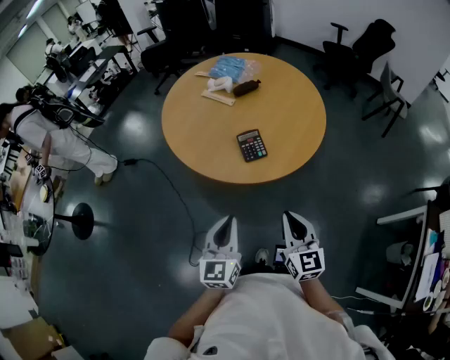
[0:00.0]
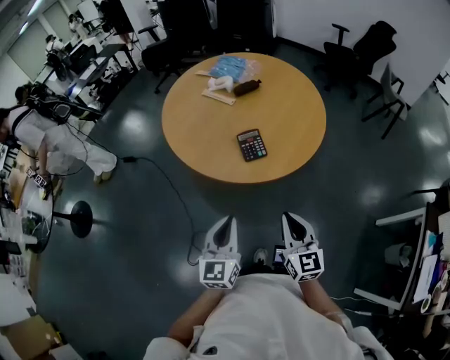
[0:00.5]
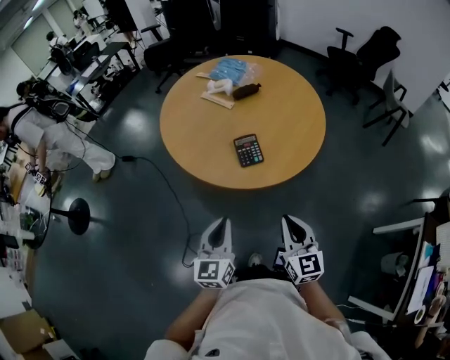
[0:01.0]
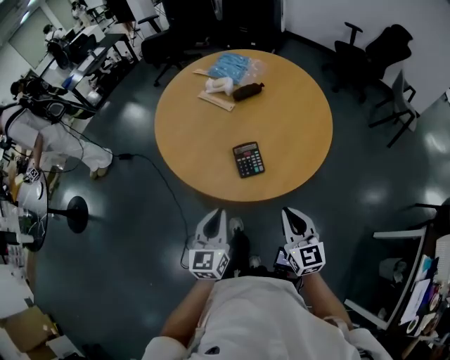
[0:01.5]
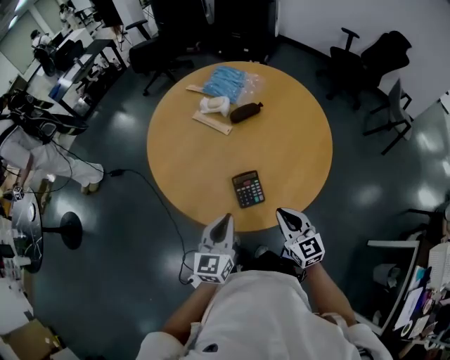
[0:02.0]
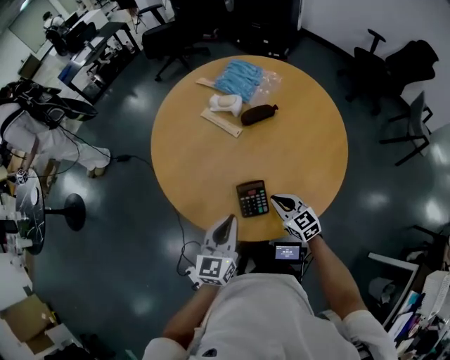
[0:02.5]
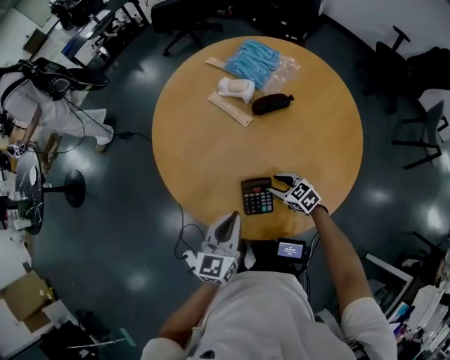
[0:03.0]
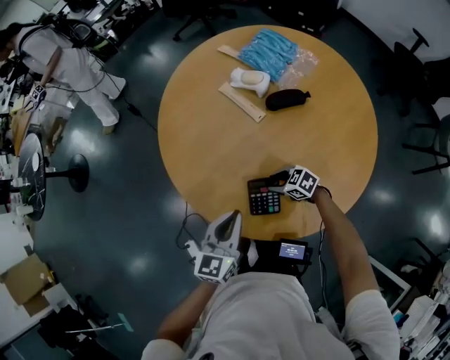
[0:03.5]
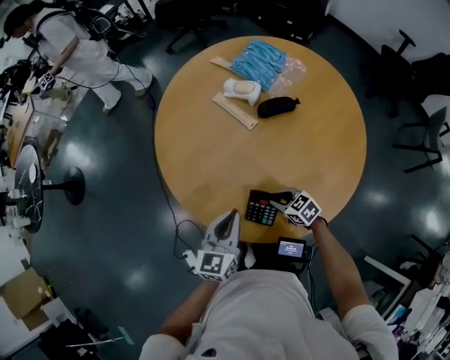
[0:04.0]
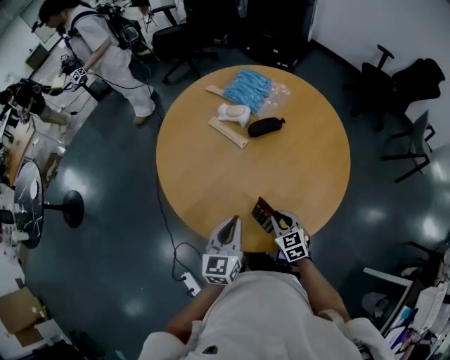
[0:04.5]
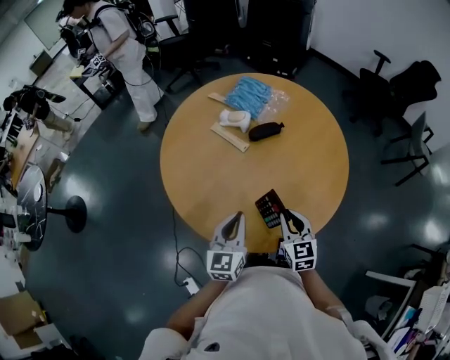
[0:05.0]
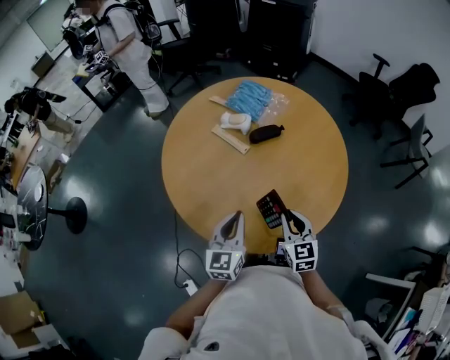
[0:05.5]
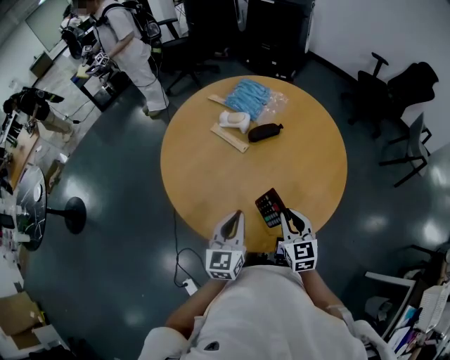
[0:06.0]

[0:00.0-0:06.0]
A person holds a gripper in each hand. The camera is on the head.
0.0 to 2.0 s: The grippers both shift forward by about 25 cm.
2.0 to 4.0 s: The left gripper changes place by approximately 10 cm. Meanwhile the right gripper moves downward, some 20 cm, swivels approximately 50 degrees, and opens, then closes again.
4.0 to 6.0 s: The right gripper heads upward, covering some 20 cm, and turns by about 50 degrees. Meanwhile the left gripper moves upward, about 5 cm.

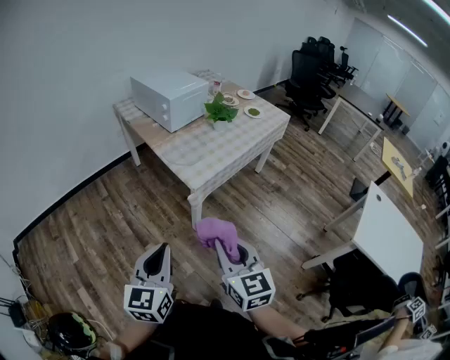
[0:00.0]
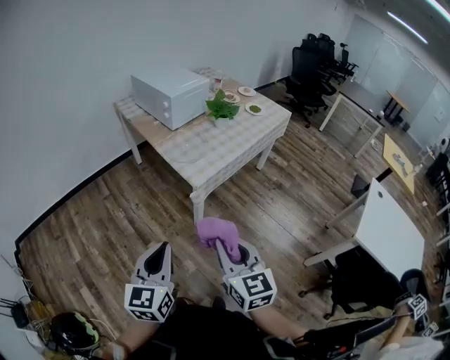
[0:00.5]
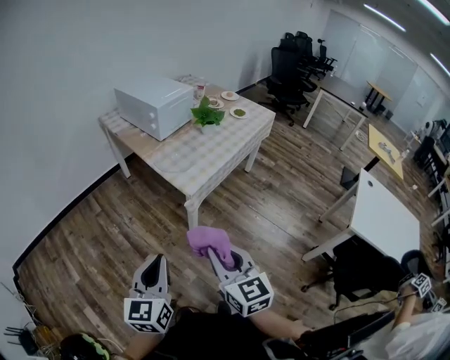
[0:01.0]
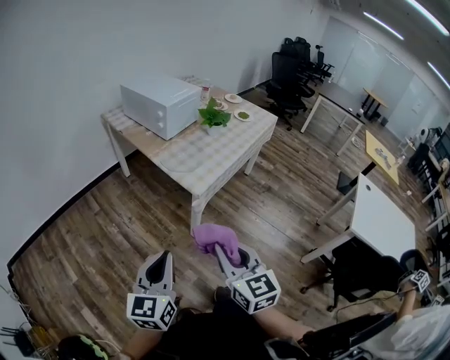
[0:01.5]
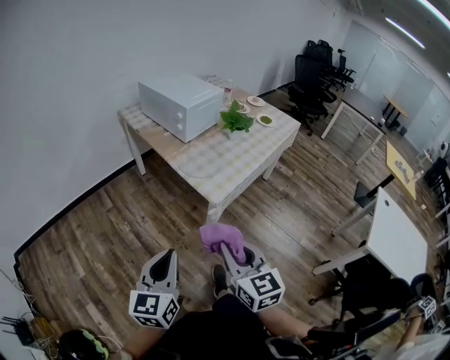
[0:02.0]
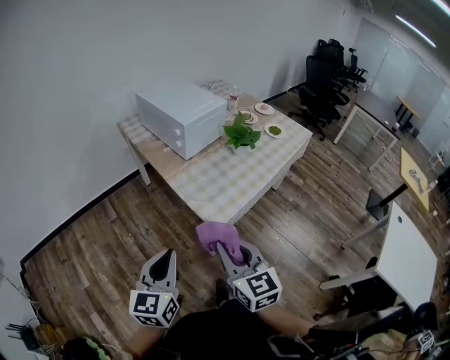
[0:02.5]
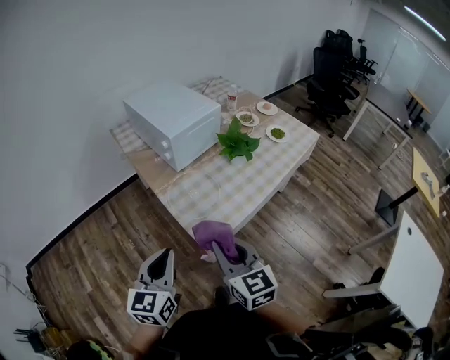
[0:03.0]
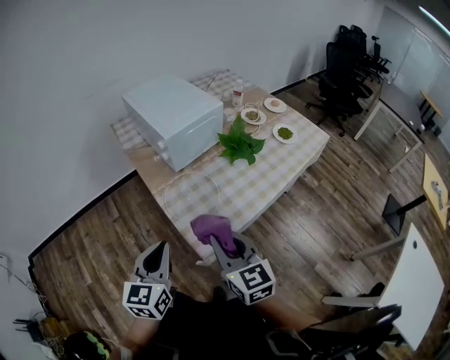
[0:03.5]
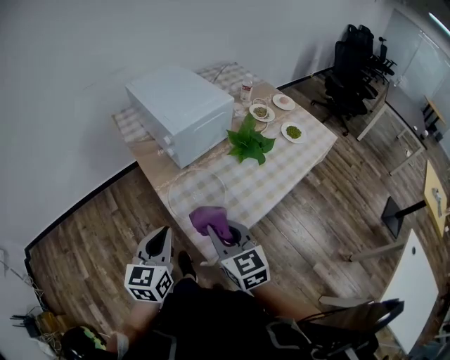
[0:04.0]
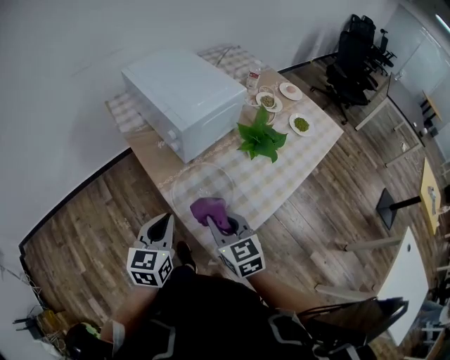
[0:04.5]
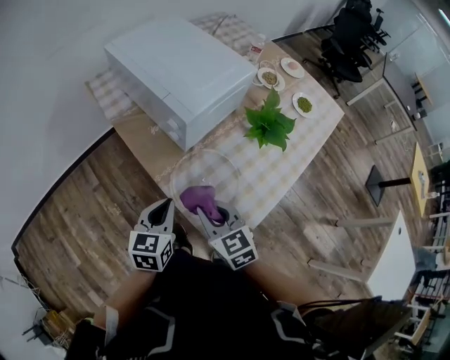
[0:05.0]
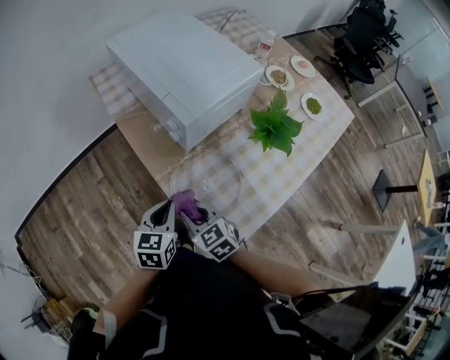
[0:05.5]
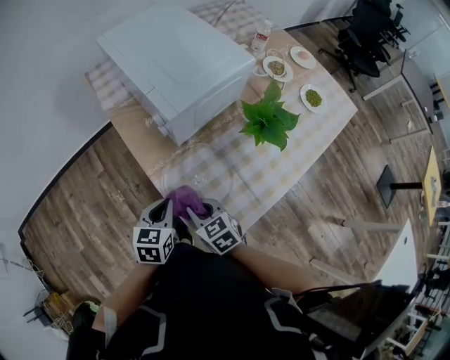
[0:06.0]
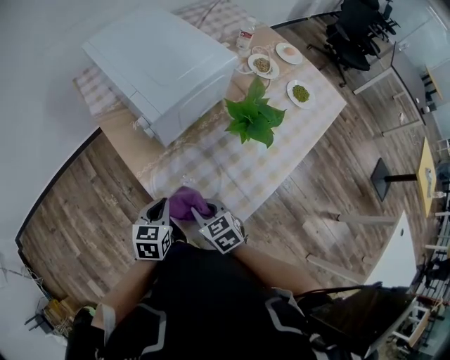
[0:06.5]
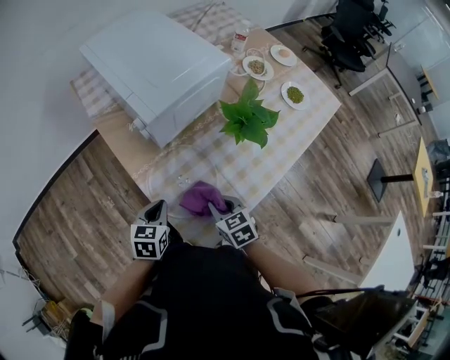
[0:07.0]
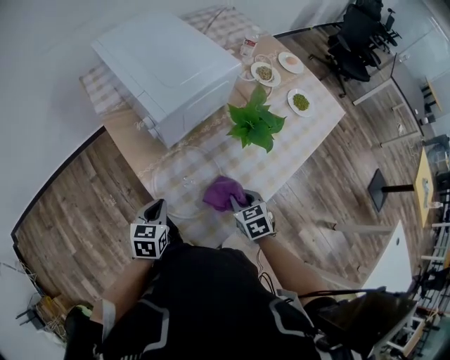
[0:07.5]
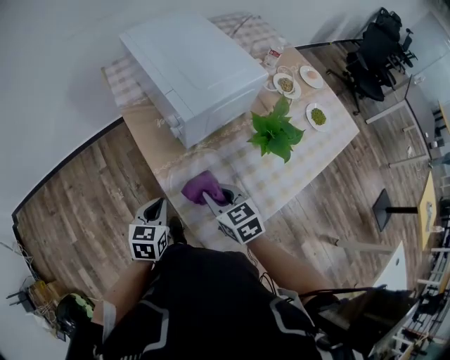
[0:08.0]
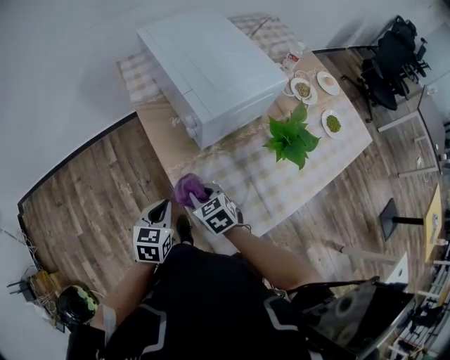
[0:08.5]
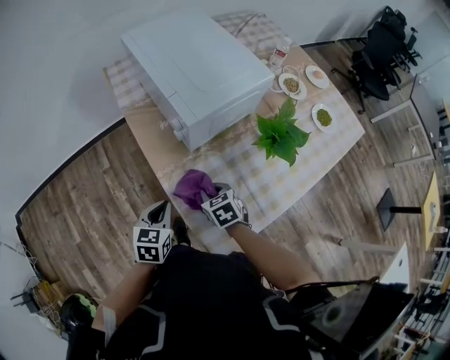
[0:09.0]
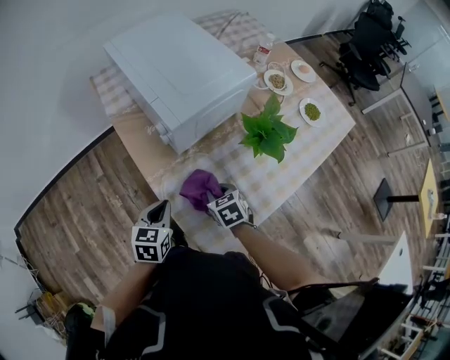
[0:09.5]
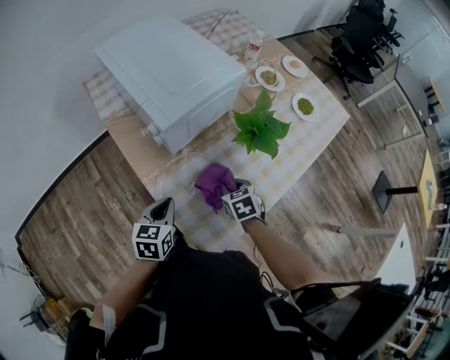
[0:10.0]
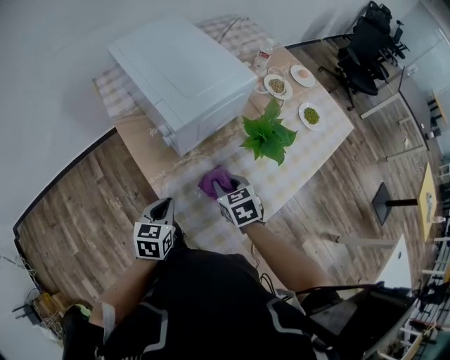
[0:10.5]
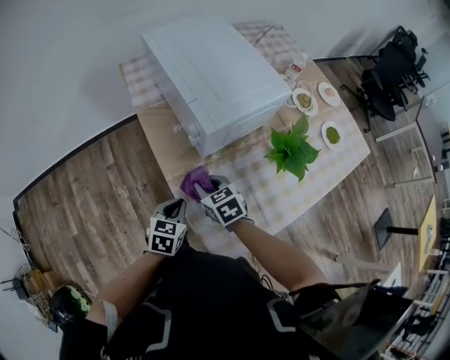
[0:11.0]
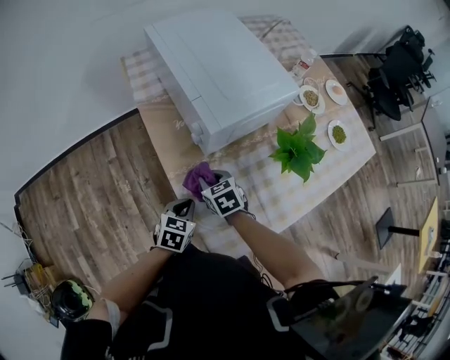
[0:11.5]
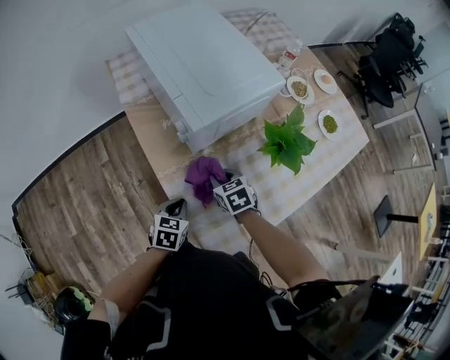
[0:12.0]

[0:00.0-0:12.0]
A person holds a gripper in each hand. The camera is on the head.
0.0 to 2.0 s: Both grippers move to the left and forward, roughly 10 cm.
2.0 to 4.0 s: The two grippers go roughly 35 cm forward.
4.0 to 6.0 s: The grippers both shift downward and forward by about 20 cm. The right gripper turns by about 30 degrees, while the left gripper swivels about 20 degrees.
6.0 to 8.0 s: The right gripper shifts some 5 cm upward, and goes to the right and returns, about 20 cm each way.
8.0 to 10.0 s: The right gripper goes some 15 cm to the right and downward, and turns by some 30 degrees. The left gripper is displaced to the right by some 5 cm.
10.0 to 12.0 s: The right gripper travels to the left and forward by about 10 cm, while the left gripper is displaced downward by some 10 cm.

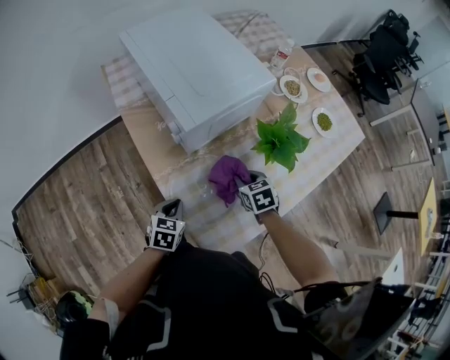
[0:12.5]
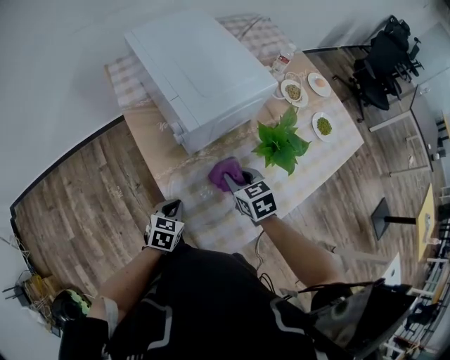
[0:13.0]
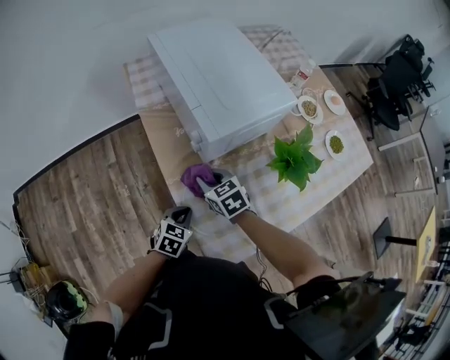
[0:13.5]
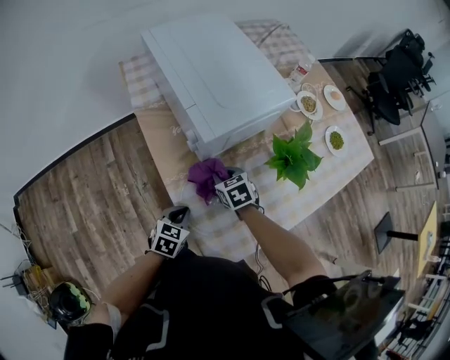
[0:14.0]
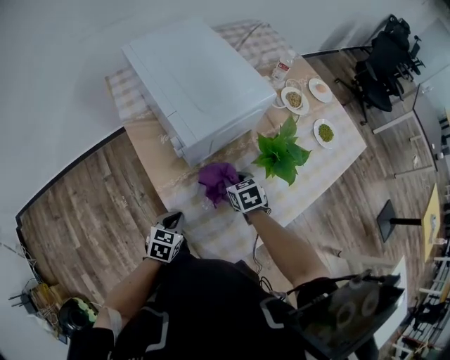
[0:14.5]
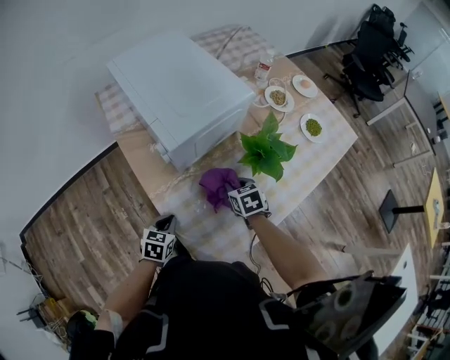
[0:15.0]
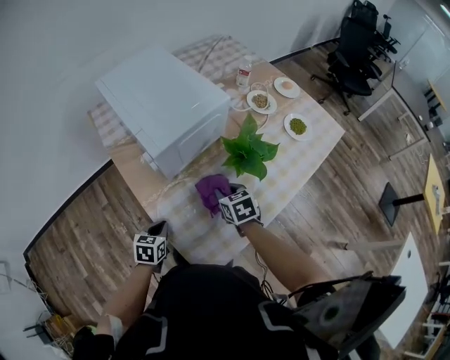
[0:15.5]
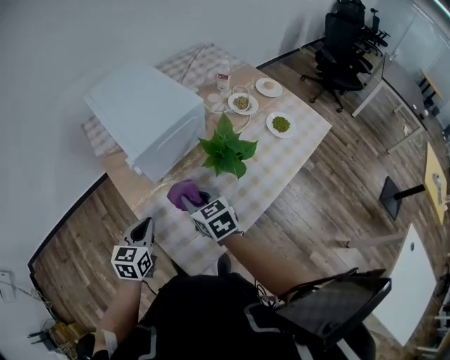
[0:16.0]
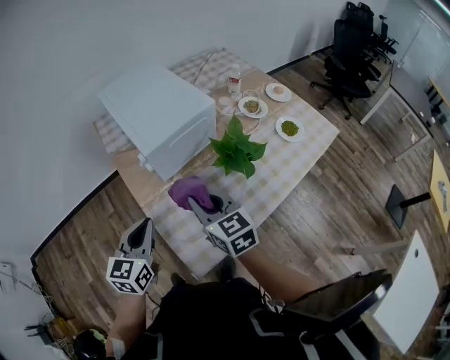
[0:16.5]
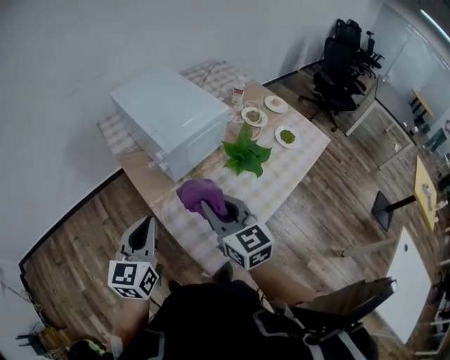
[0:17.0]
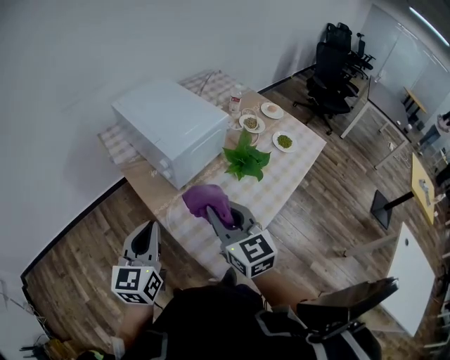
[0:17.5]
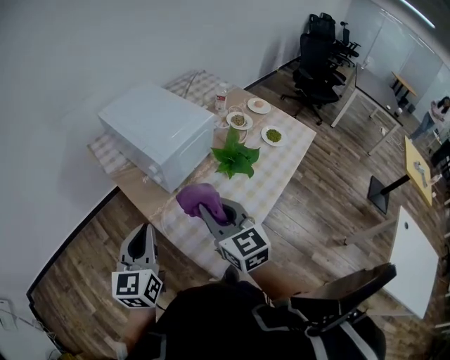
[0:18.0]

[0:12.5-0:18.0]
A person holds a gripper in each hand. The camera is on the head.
12.5 to 14.5 s: The right gripper travels to the left and back again, about 20 cm each way.
14.5 to 16.0 s: The left gripper shifts approximately 15 cm upward, while the right gripper moves upward and backward, approximately 15 cm, and turns by approximately 20 degrees.
16.0 to 18.0 s: The right gripper travels upward and backward by some 20 cm, and swivels some 30 degrees. The left gripper heads upward, covering roughly 15 cm, and swivels about 20 degrees.

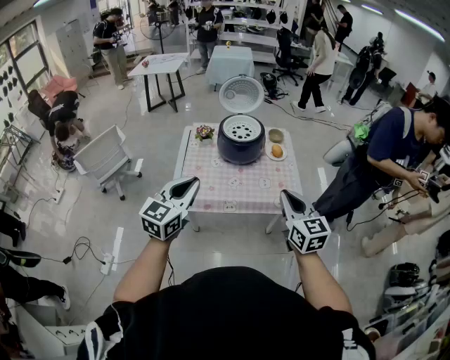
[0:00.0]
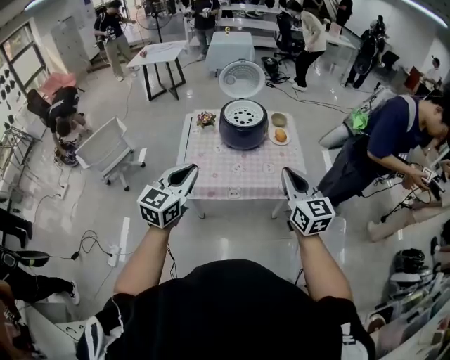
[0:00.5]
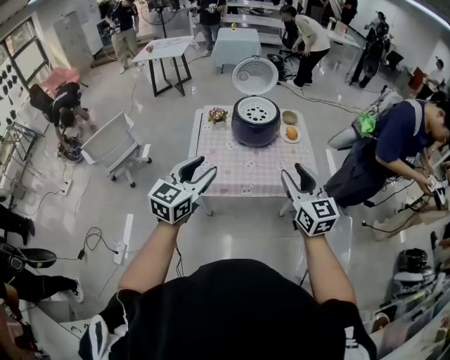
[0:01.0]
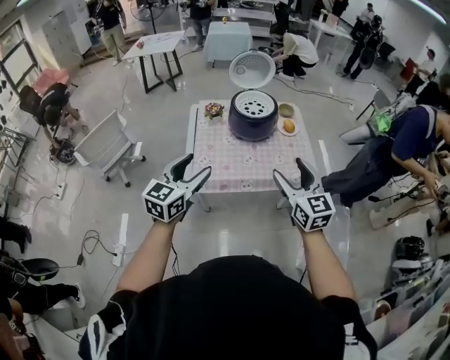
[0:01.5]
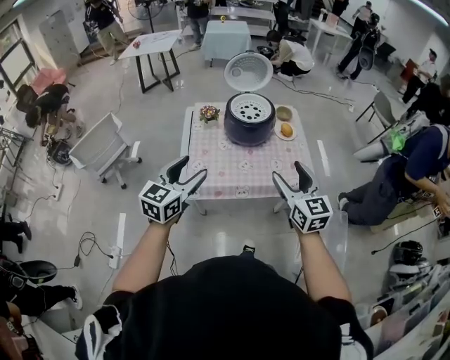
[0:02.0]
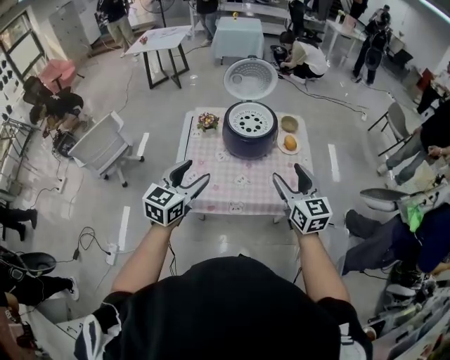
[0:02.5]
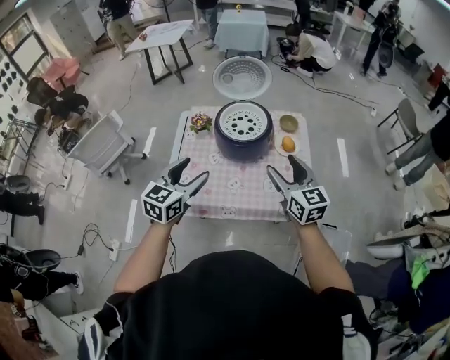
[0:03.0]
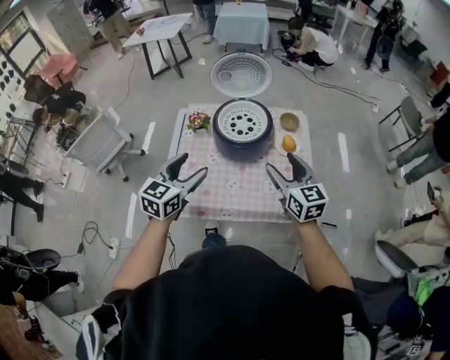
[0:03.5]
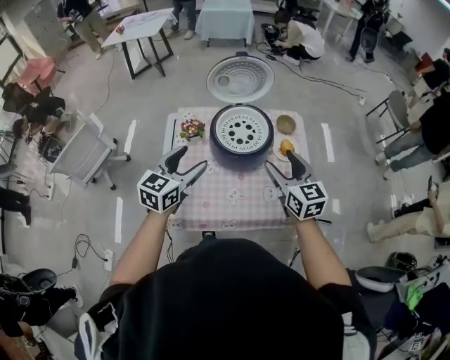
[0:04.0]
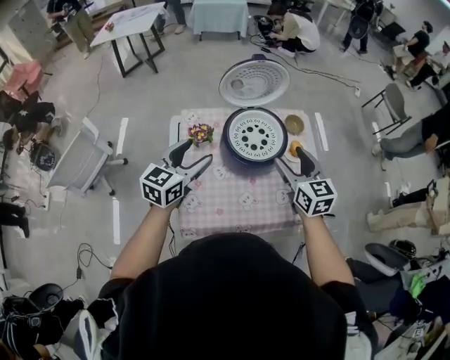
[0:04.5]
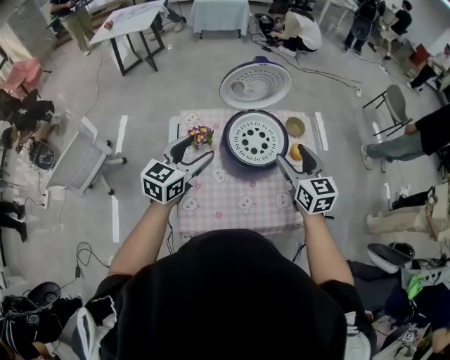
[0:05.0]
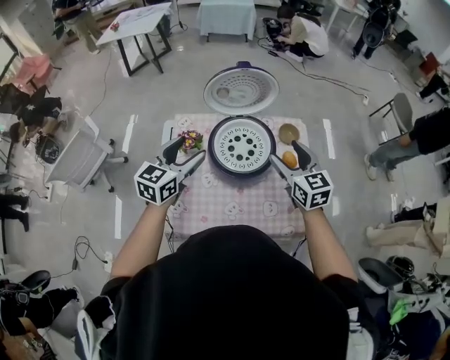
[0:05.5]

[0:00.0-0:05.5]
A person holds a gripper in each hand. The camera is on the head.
0.0 to 2.0 s: Both grippers travel together to the left and forward, approximately 10 cm. The left gripper opens its fingers. The right gripper opens up.
2.0 to 3.5 s: The left gripper shifts approximately 20 cm forward and to the right, while the right gripper heads forward, covering roughly 25 cm.
3.5 to 5.5 s: Both grippers move forward, approximately 20 cm.
